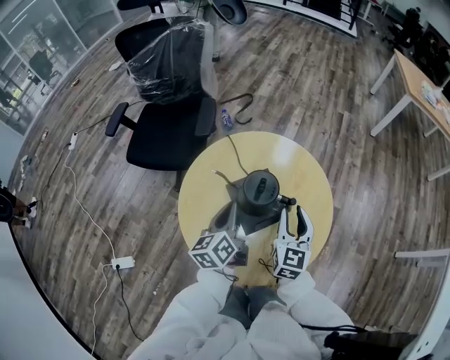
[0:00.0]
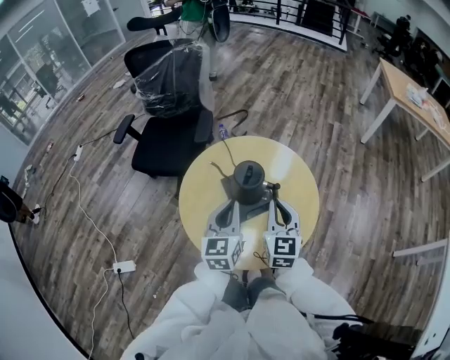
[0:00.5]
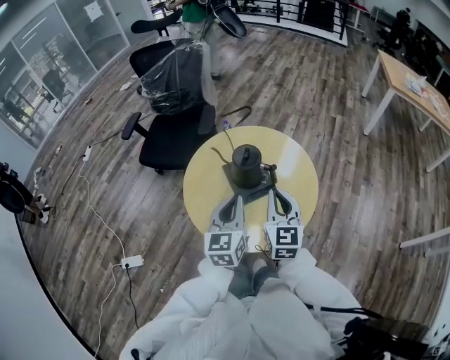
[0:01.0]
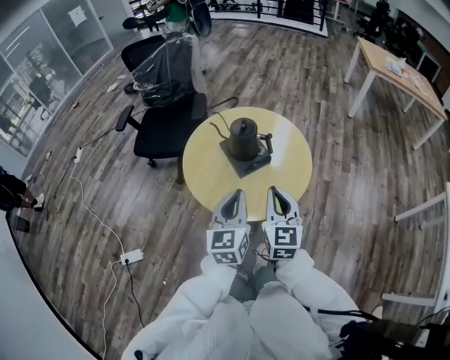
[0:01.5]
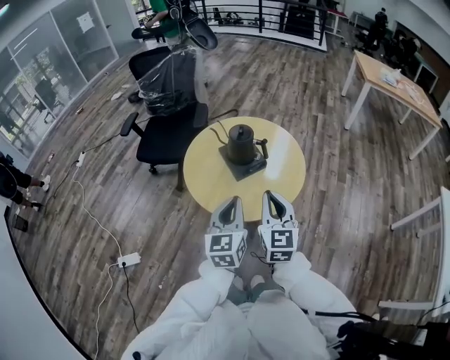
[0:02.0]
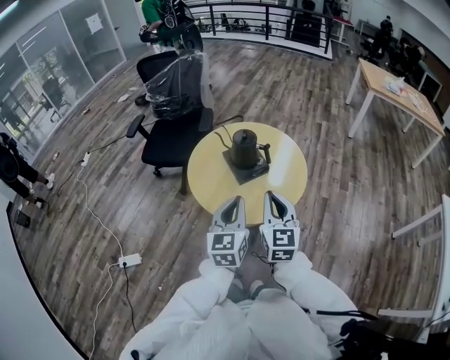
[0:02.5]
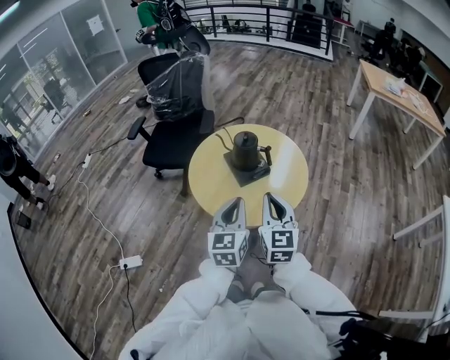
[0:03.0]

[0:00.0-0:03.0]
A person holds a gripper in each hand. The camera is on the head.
0:00.0 to 0:01.5: Both grippers travel together backward and upward, about 30 cm. The left gripper rotates some 30 degrees. The right gripper closes its fingers.
0:01.5 to 0:03.0: The right gripper moves roughly 5 cm. The left gripper ends up approximately 5 cm from where it was.

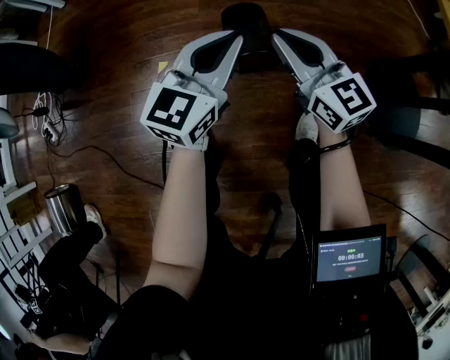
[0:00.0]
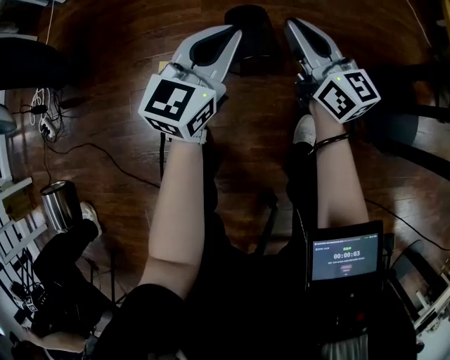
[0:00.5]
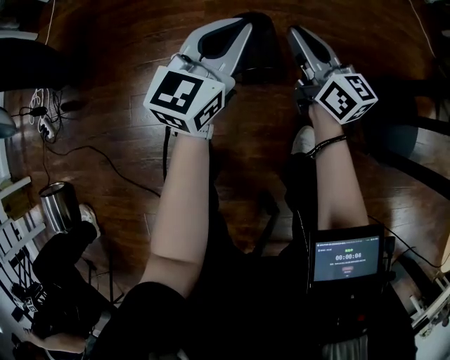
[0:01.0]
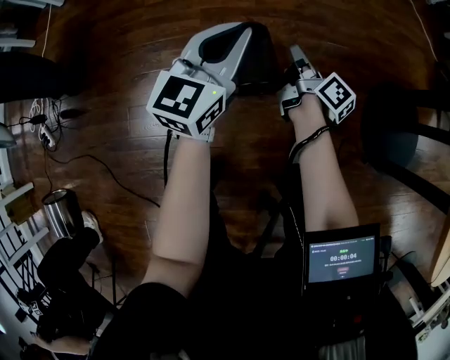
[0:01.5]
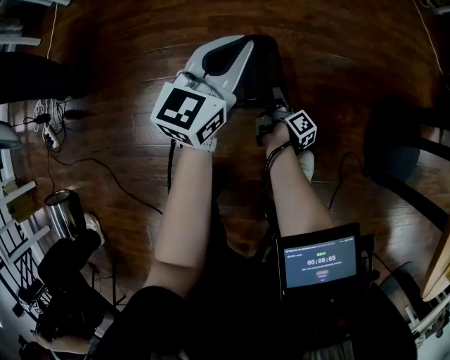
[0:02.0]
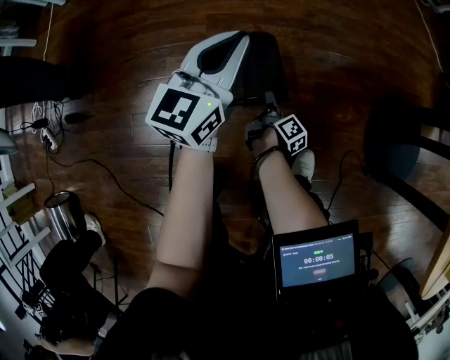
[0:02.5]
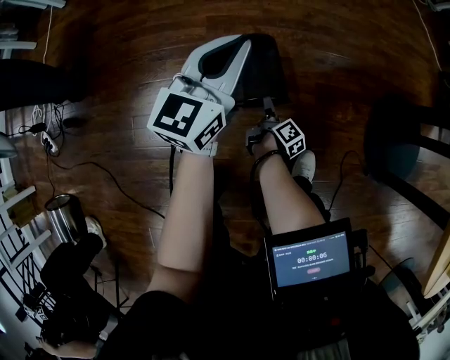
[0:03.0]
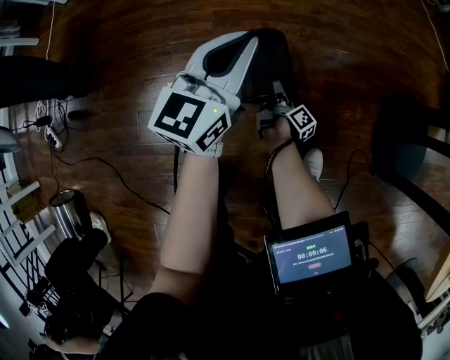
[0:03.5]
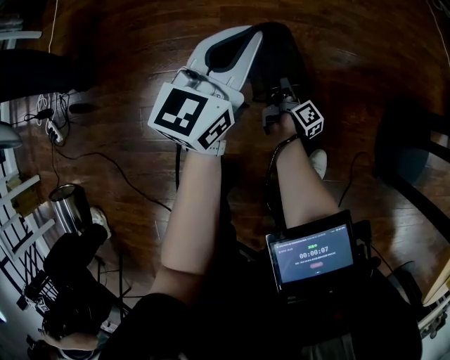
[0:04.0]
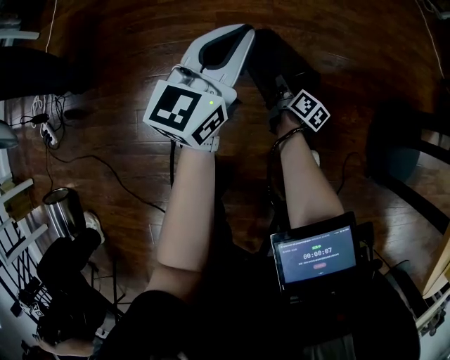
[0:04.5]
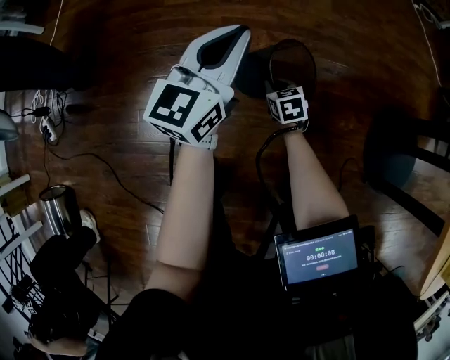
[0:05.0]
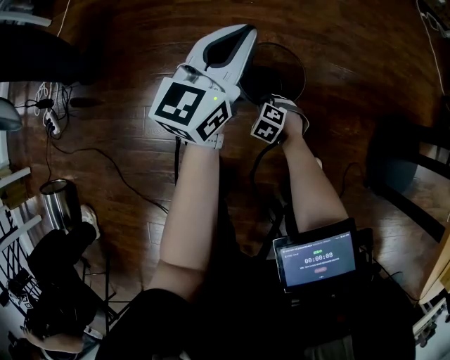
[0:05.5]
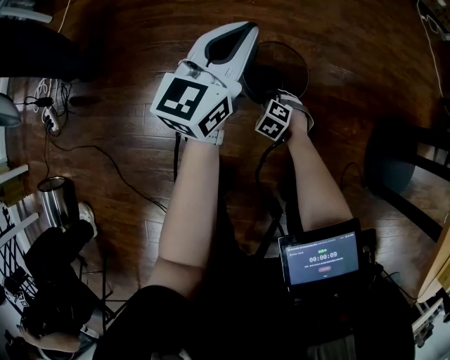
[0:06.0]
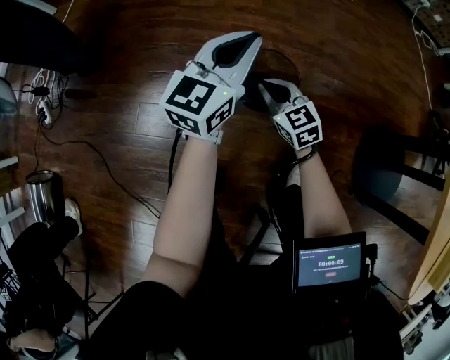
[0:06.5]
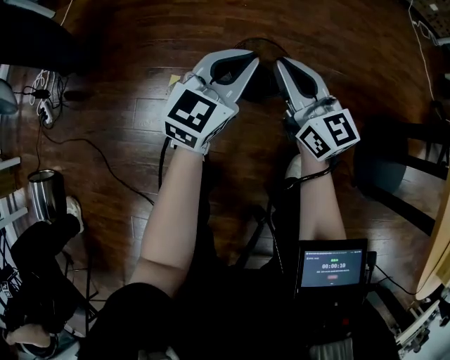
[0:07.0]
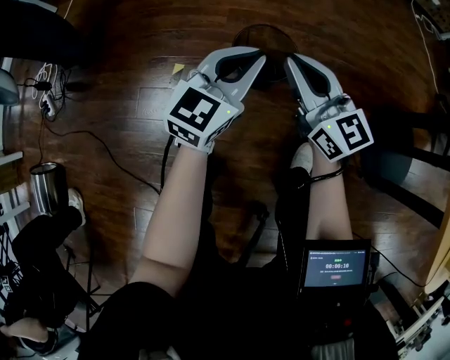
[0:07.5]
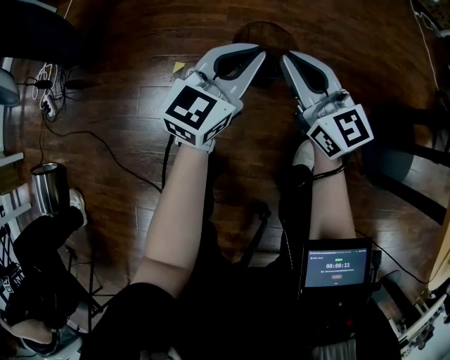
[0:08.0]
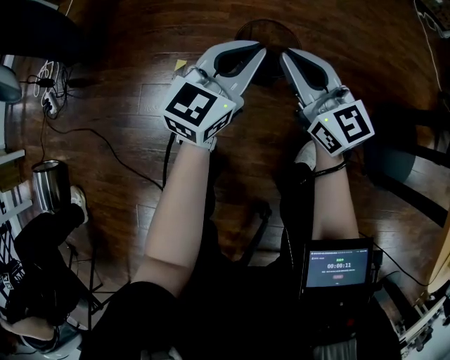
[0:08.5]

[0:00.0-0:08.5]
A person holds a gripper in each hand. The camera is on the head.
0:00.0 to 0:02.0: The right gripper moves downward, about 35 cm, rolls clockwise, seen from behind, by about 90 degrees, and opens. The left gripper heads forward, covering some 15 cm.
0:02.0 to 0:04.0: The right gripper moves approximately 5 cm, and closes its fingers.
0:04.0 to 0:06.5: The right gripper goes roughly 25 cm upward and to the left, twists about 100 degrees counterclockwise, seen from behind, and opens, then closes again. Meanwhile the left gripper goes roughly 5 cm to the left.
0:06.5 to 0:08.5: The left gripper goes about 10 cm backward. The right gripper is displaced upward and backward by about 20 cm, and turns by approximately 30 degrees.

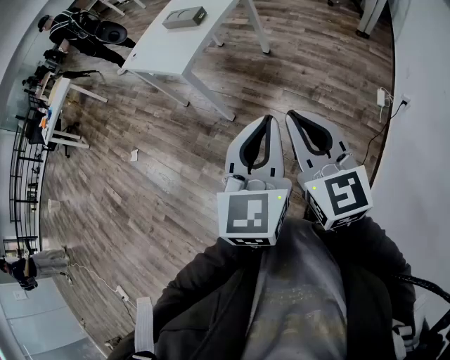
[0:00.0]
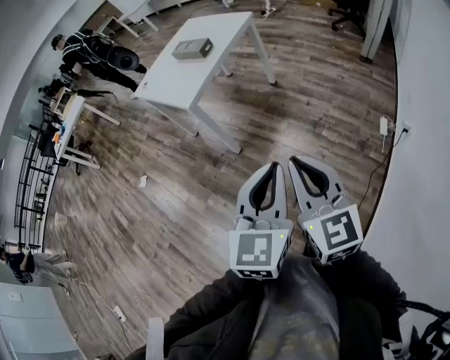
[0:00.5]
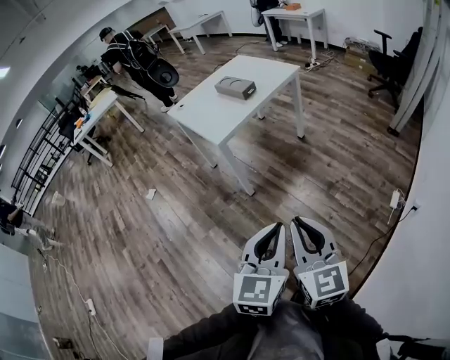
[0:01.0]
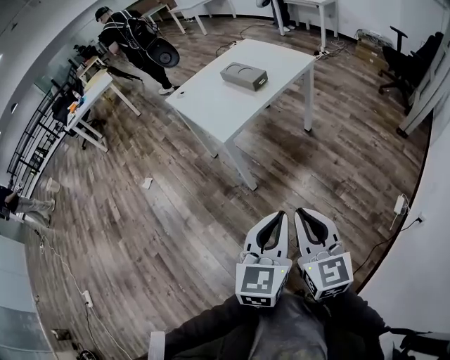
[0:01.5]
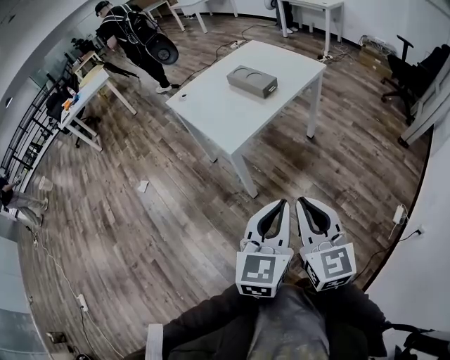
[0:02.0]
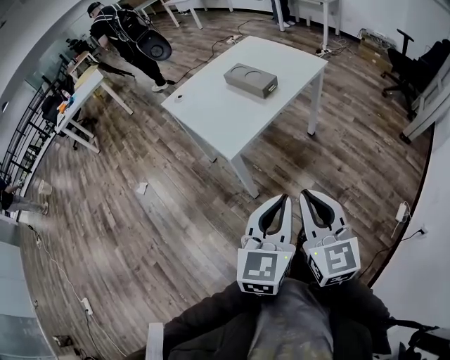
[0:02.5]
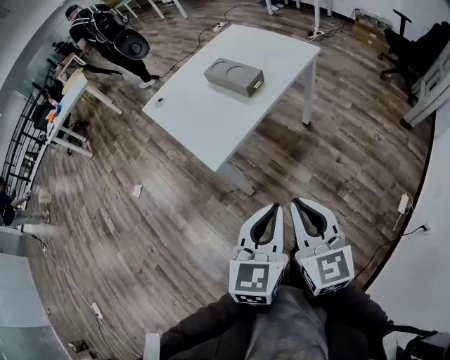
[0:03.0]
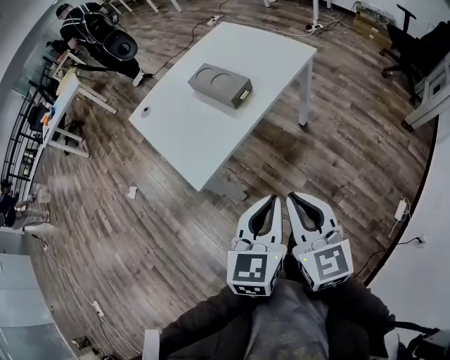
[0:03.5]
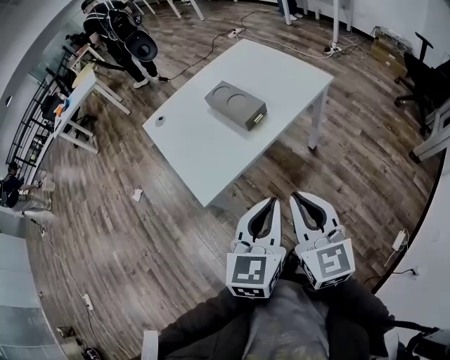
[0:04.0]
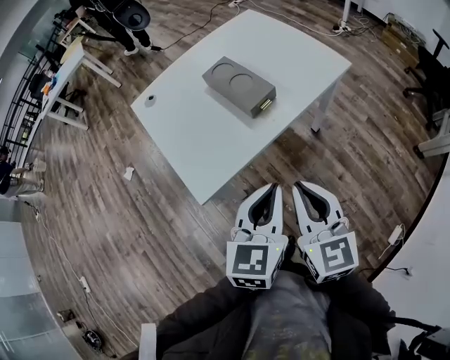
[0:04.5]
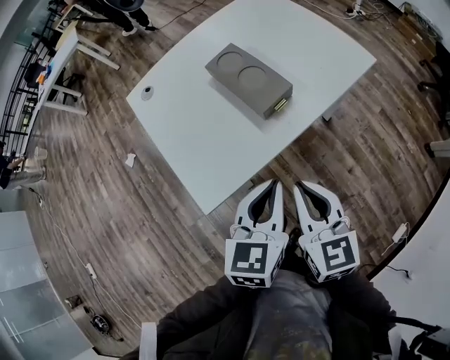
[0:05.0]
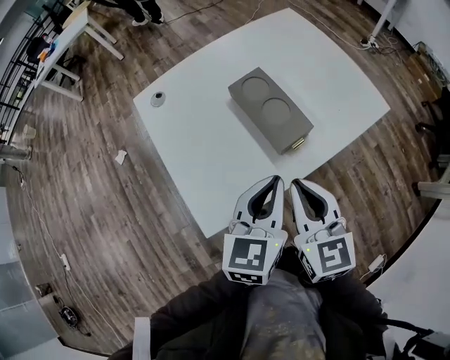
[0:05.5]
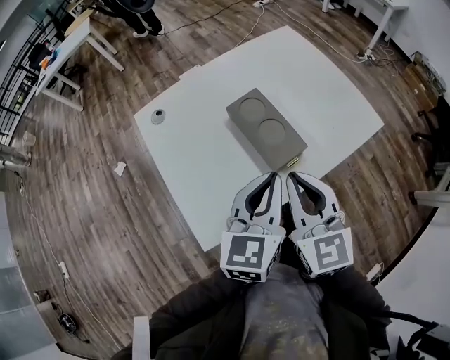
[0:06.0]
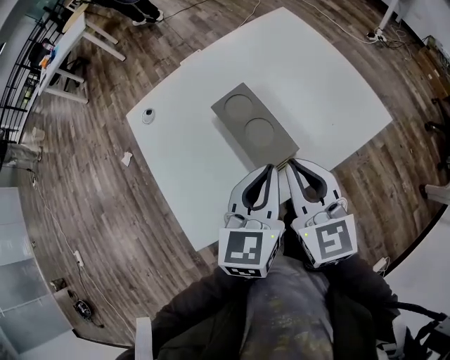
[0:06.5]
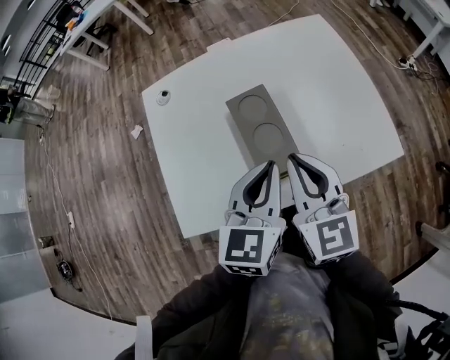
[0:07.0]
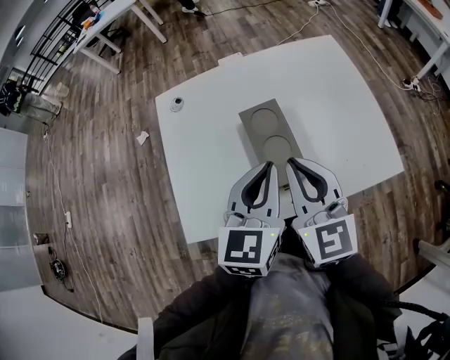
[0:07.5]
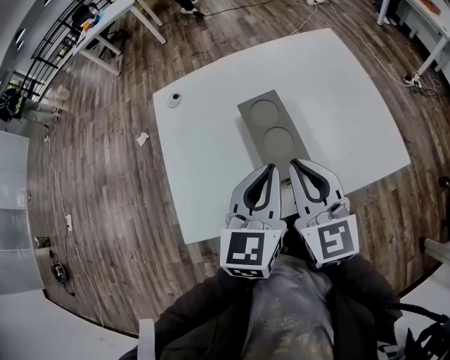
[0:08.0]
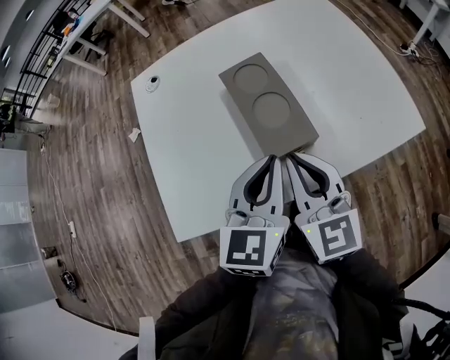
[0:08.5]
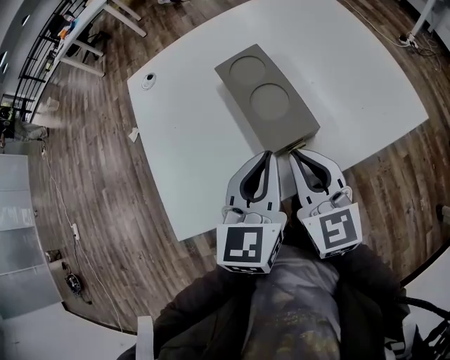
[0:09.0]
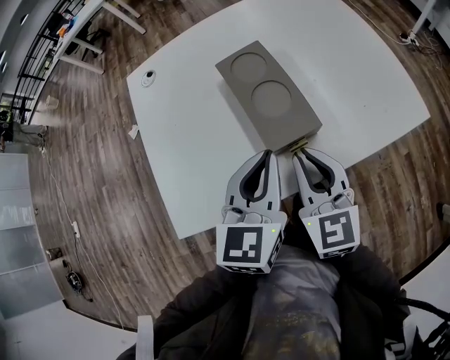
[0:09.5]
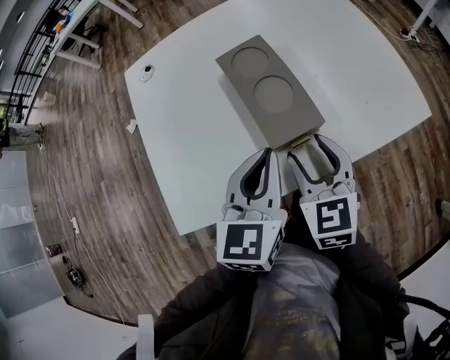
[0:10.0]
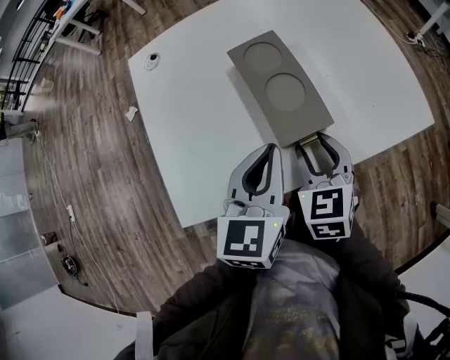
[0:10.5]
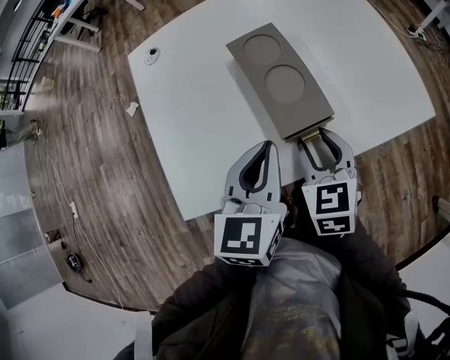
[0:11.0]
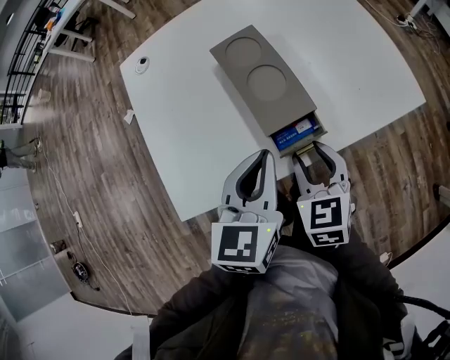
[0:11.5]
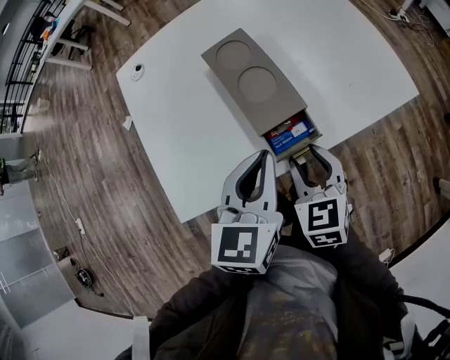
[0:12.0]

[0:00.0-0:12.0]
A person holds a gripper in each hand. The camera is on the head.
0:00.0 to 0:02.0: The grippers both shift forward by about 20 cm.
0:02.0 to 0:04.0: The two grippers go roughly 25 cm forward.
0:04.0 to 0:06.0: The two grippers go approximately 30 cm forward.
0:06.0 to 0:08.0: Both grippers travel together forward, about 5 cm.
0:08.0 to 0:10.0: The left gripper moves downward, some 10 cm. The right gripper is displaced downward by about 15 cm, and opens.
0:10.0 to 0:12.0: The right gripper shifts by approximately 5 cm.

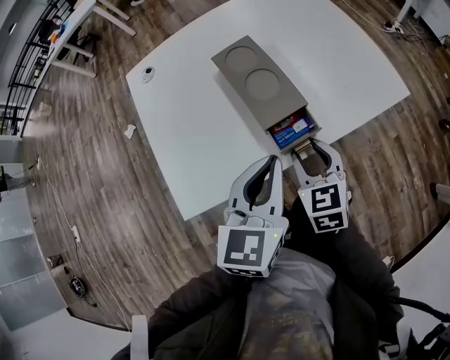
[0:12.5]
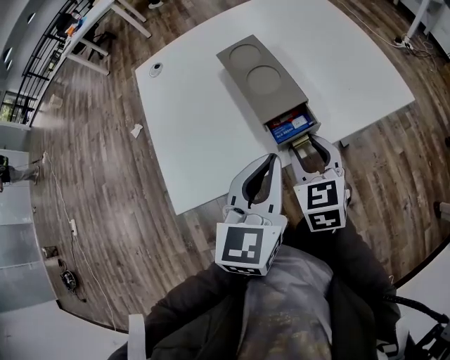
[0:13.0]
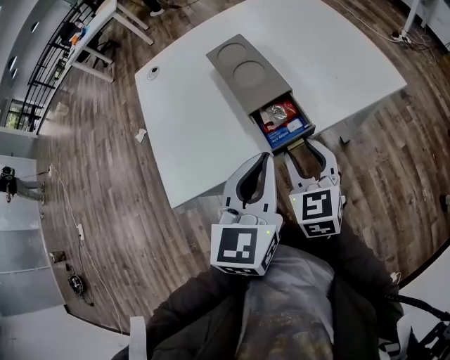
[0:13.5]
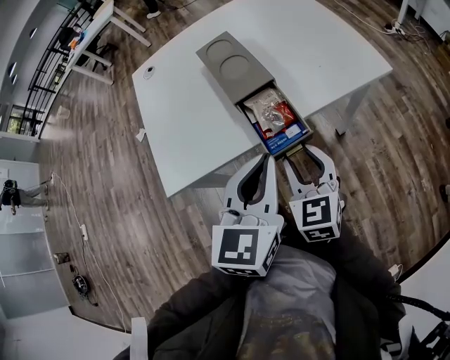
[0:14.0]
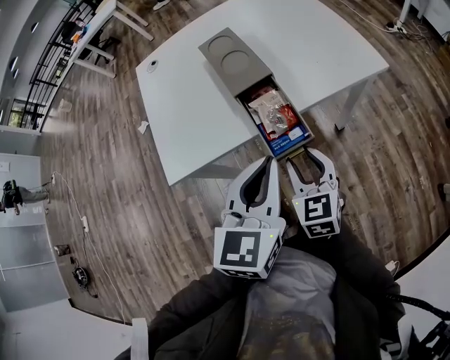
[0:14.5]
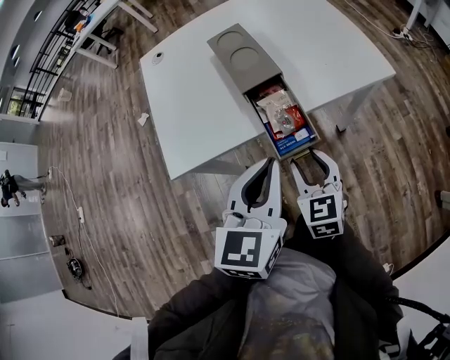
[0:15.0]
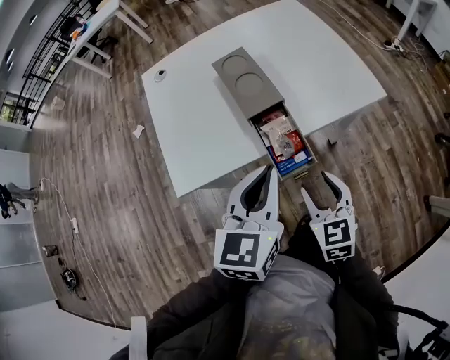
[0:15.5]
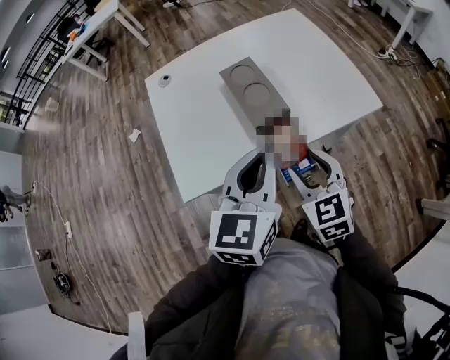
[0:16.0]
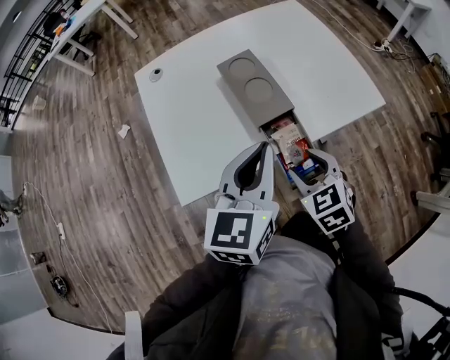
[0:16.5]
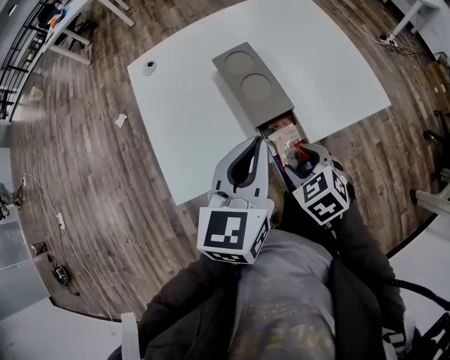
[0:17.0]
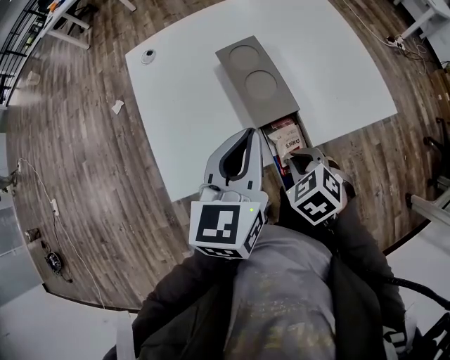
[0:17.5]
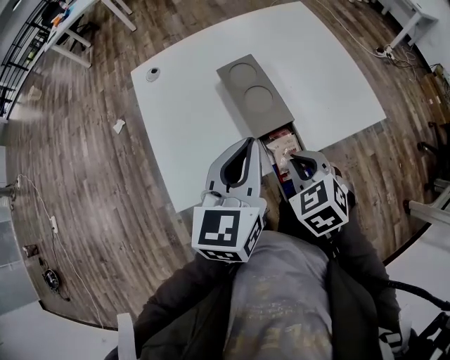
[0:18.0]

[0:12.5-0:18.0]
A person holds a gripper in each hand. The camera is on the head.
0:12.5 to 0:14.5: The left gripper moves backward and to the right, roughly 10 cm. The right gripper moves backward, some 10 cm.
0:14.5 to 0:16.0: The left gripper goes about 10 cm upward and forward. Meanwhile the right gripper is displaced upward by approximately 10 cm.
0:16.0 to 0:18.0: Both grippers move forward, roughly 5 cm. The right gripper moves approximately 10 cm downward and comes back, rotates roughly 20 degrees, and closes up.
